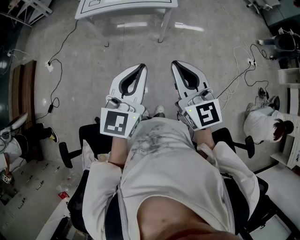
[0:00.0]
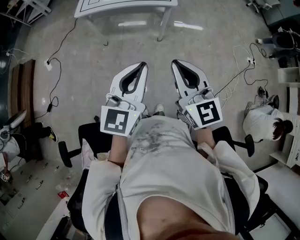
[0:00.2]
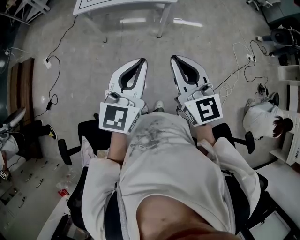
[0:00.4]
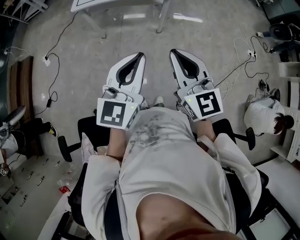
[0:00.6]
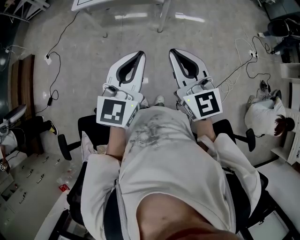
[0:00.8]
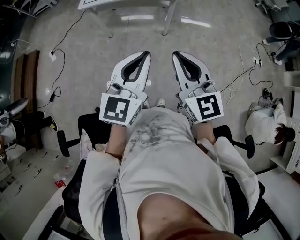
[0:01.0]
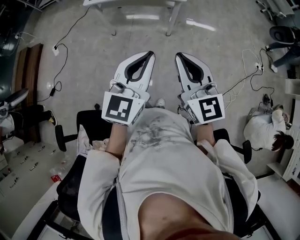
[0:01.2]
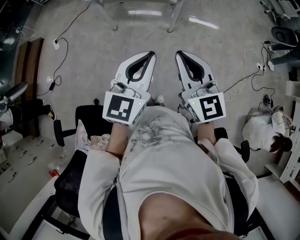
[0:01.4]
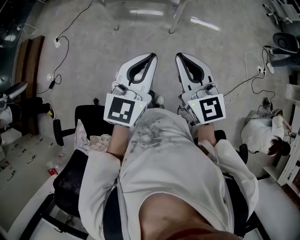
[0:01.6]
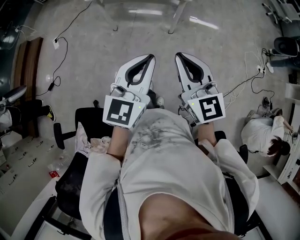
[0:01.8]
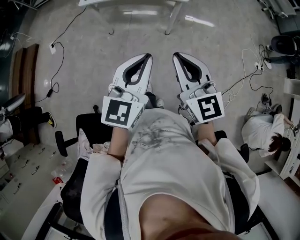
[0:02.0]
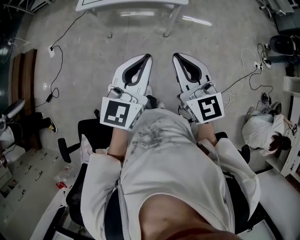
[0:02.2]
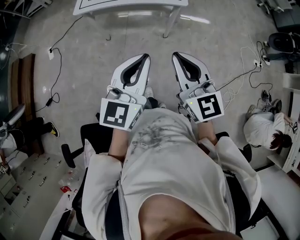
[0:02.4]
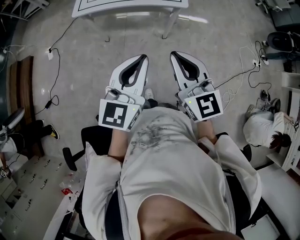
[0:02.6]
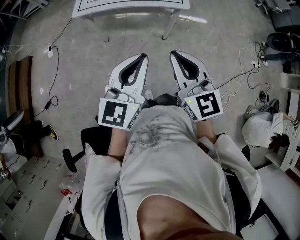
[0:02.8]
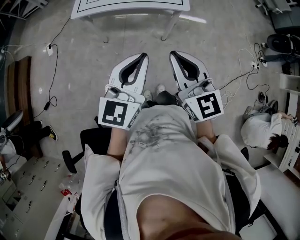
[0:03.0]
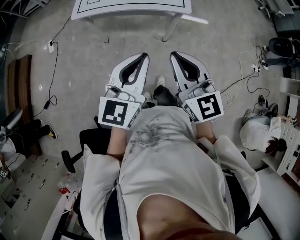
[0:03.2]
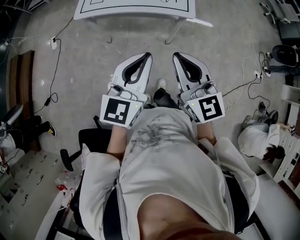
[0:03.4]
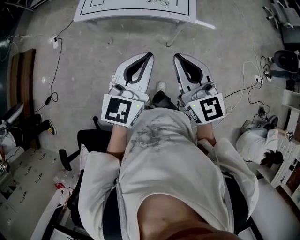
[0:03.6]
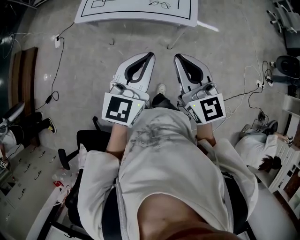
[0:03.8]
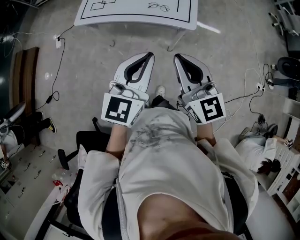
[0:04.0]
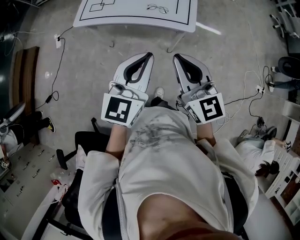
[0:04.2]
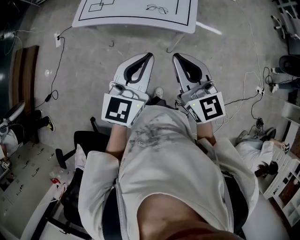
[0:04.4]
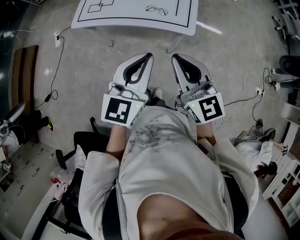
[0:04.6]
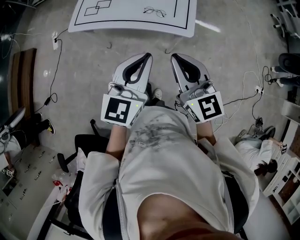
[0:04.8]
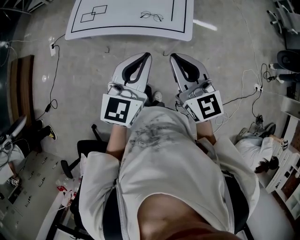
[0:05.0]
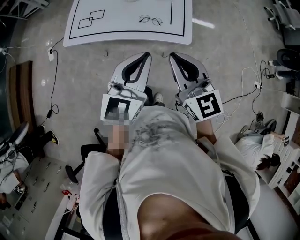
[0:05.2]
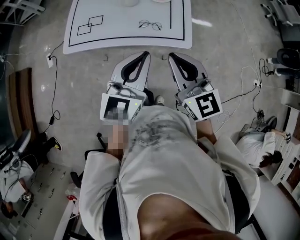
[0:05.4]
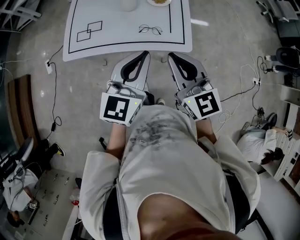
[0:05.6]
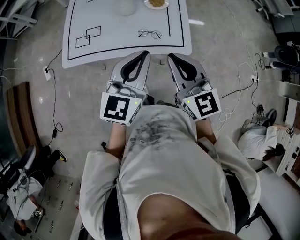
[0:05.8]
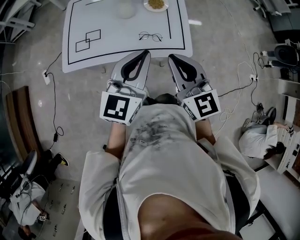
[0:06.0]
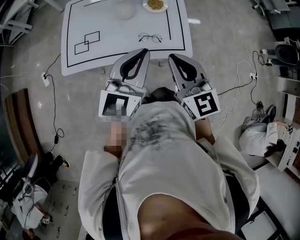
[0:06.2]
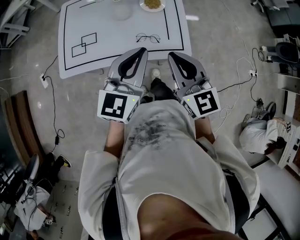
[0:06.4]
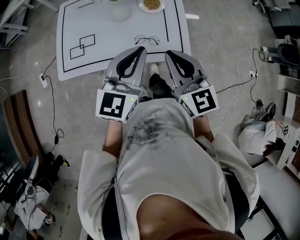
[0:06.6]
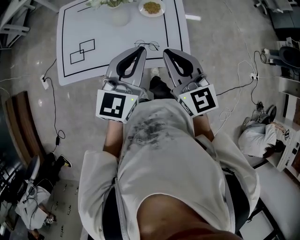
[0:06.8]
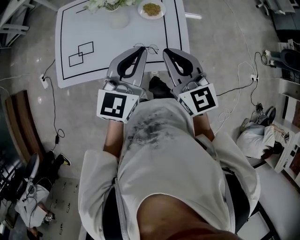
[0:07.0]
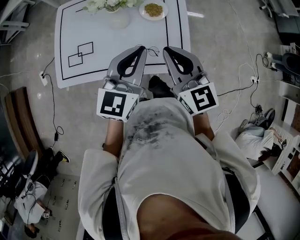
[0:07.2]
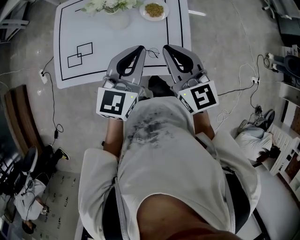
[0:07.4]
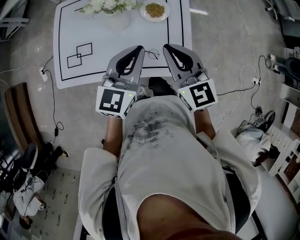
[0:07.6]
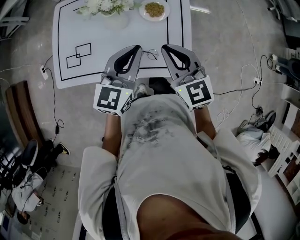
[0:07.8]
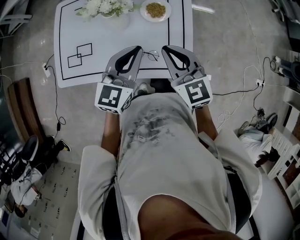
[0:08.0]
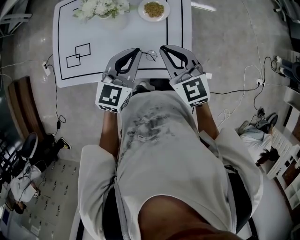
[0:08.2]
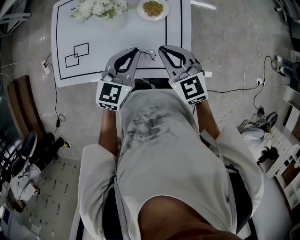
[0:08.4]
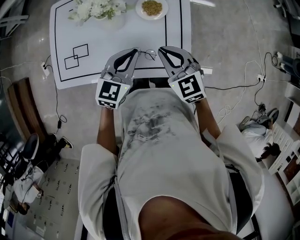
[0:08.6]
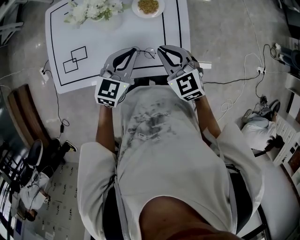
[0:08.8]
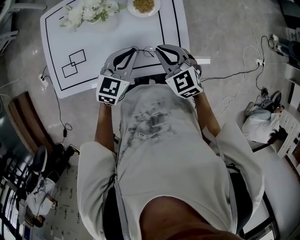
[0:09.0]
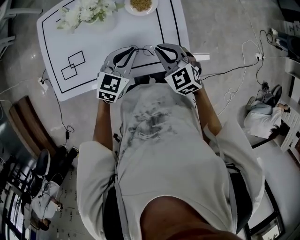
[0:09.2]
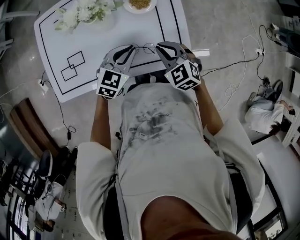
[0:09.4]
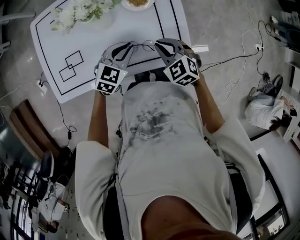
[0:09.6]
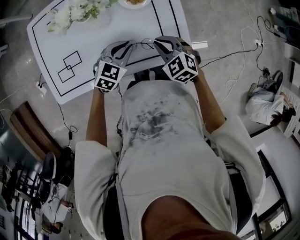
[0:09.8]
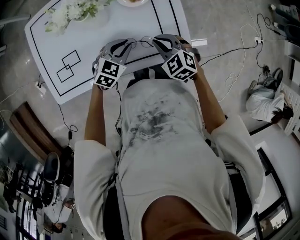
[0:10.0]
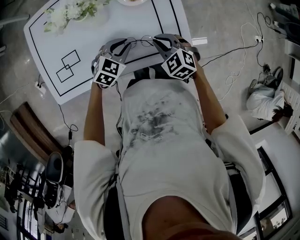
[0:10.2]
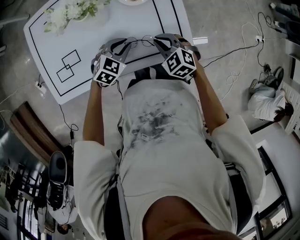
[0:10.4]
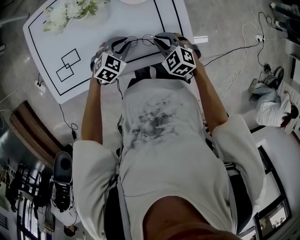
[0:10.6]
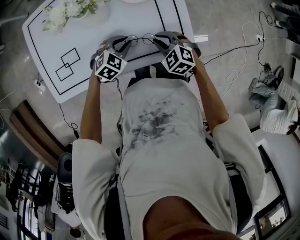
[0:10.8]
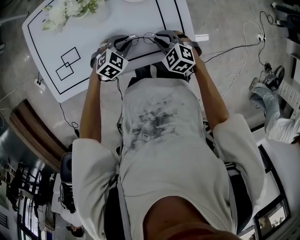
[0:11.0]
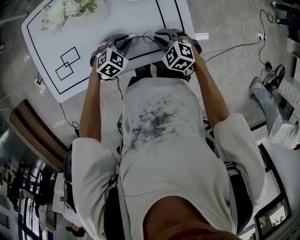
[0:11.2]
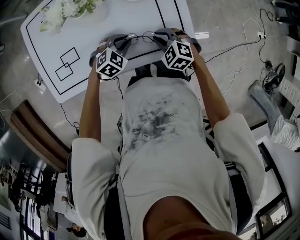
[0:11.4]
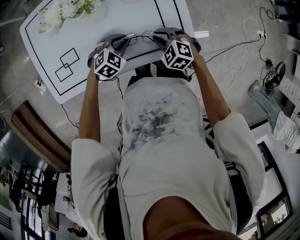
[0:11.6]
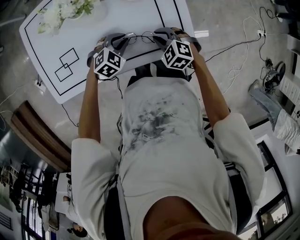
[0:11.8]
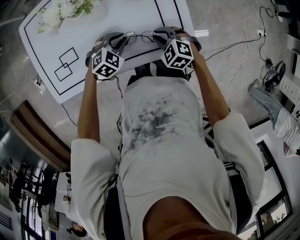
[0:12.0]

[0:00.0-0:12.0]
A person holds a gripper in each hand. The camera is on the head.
0:00.0 to 0:01.6: The left gripper moves about 5 cm.
0:01.6 to 0:03.0: The grippers both shift forward by some 20 cm.
0:03.0 to 0:04.4: The grippers both shift forward and to the right by roughly 20 cm.
0:04.4 to 0:06.0: Both grippers travel together forward, about 20 cm.
0:06.0 to 0:07.6: Both grippers move forward, about 20 cm.
0:07.6 to 0:09.0: Both grippers move downward, approximately 15 cm. The right gripper rotates about 20 degrees; the left gripper changes its angle by approximately 20 degrees.
0:09.0 to 0:10.4: The grippers both shift downward by about 15 cm. The left gripper rotates some 30 degrees.
0:10.4 to 0:12.0: The grippers move only a little.

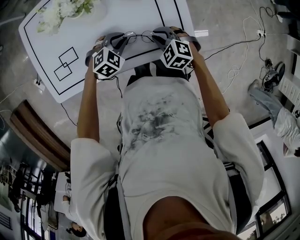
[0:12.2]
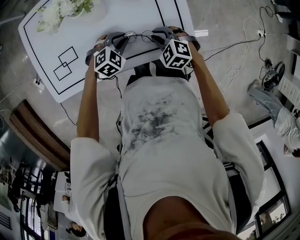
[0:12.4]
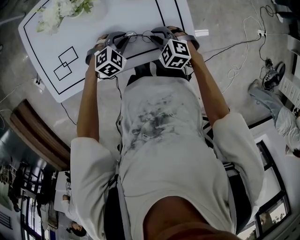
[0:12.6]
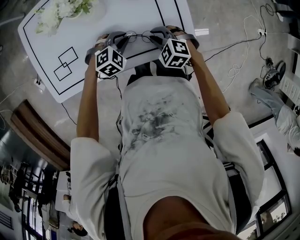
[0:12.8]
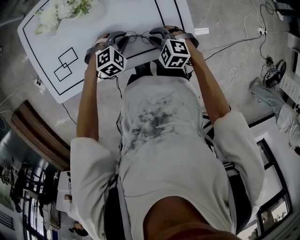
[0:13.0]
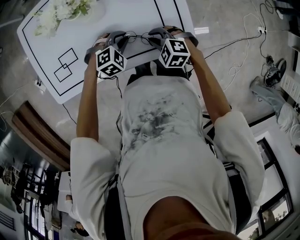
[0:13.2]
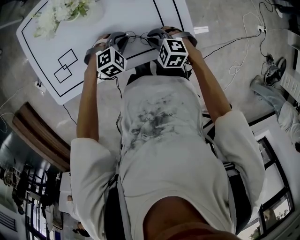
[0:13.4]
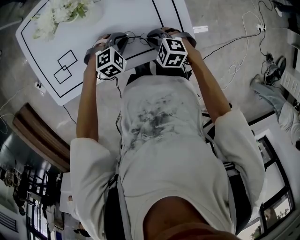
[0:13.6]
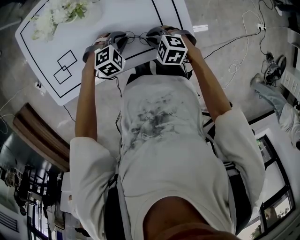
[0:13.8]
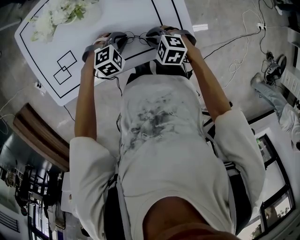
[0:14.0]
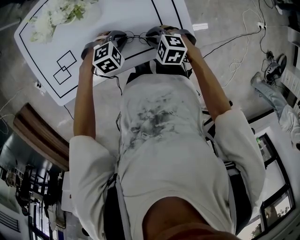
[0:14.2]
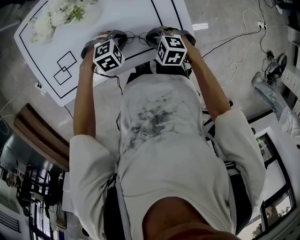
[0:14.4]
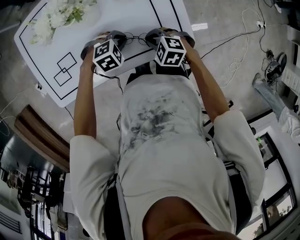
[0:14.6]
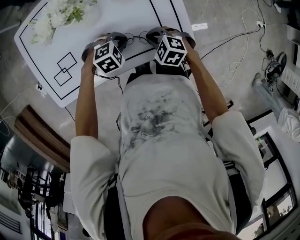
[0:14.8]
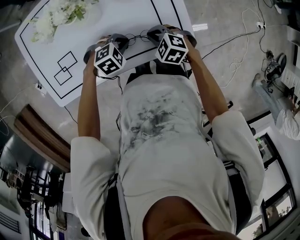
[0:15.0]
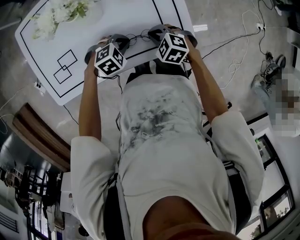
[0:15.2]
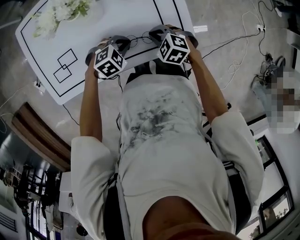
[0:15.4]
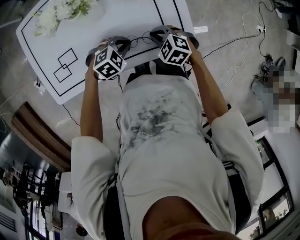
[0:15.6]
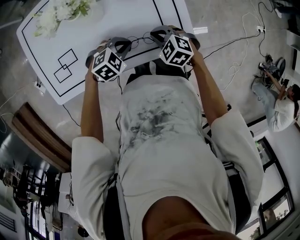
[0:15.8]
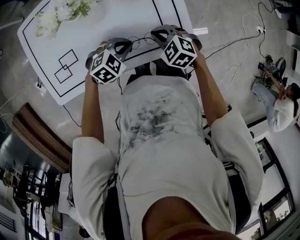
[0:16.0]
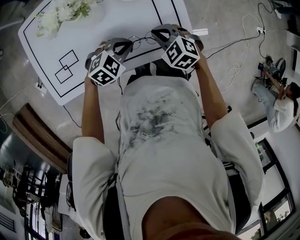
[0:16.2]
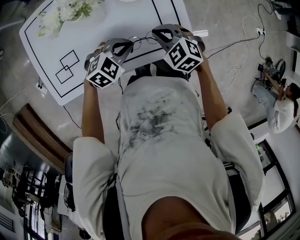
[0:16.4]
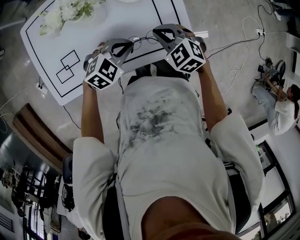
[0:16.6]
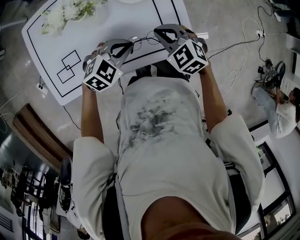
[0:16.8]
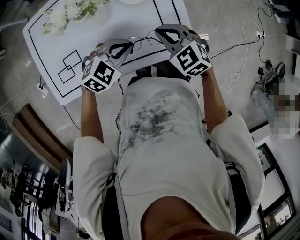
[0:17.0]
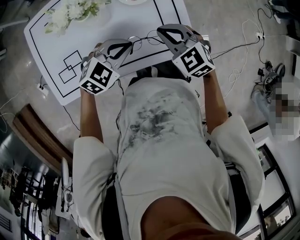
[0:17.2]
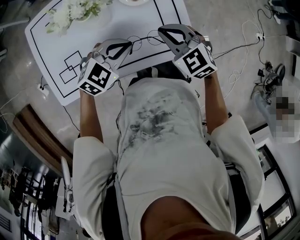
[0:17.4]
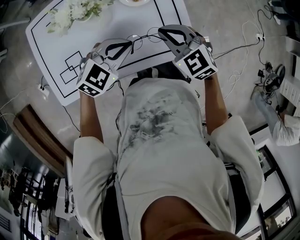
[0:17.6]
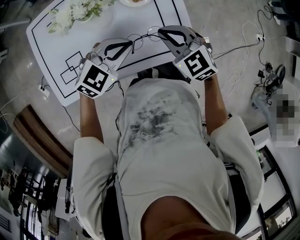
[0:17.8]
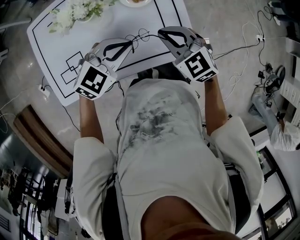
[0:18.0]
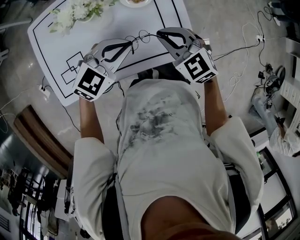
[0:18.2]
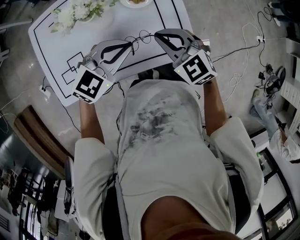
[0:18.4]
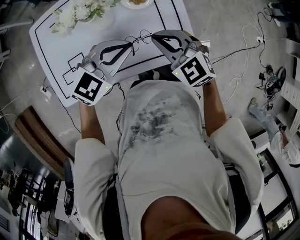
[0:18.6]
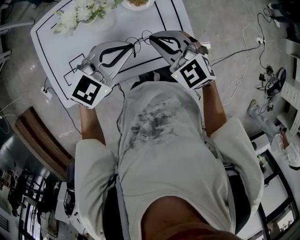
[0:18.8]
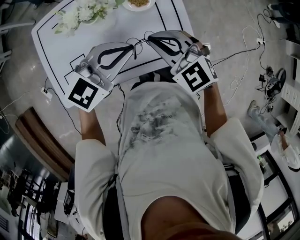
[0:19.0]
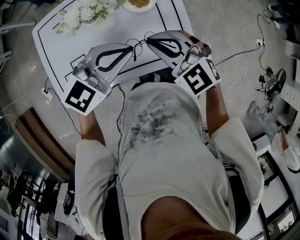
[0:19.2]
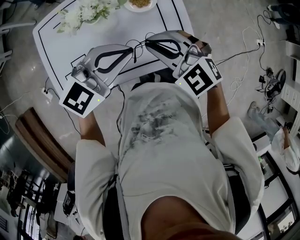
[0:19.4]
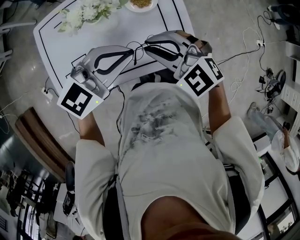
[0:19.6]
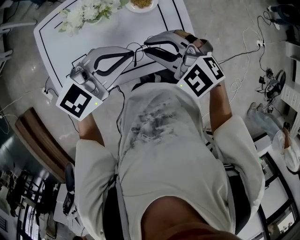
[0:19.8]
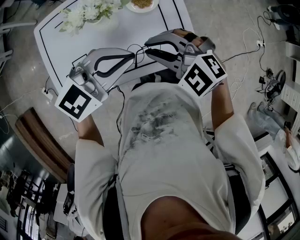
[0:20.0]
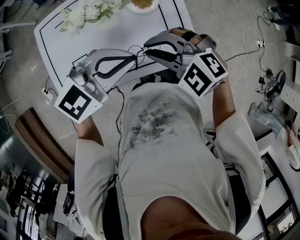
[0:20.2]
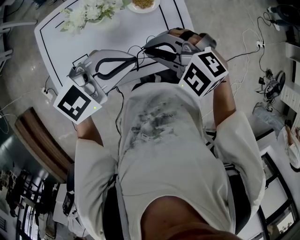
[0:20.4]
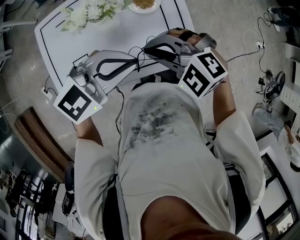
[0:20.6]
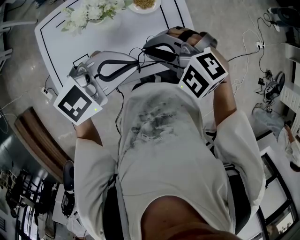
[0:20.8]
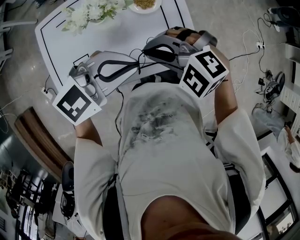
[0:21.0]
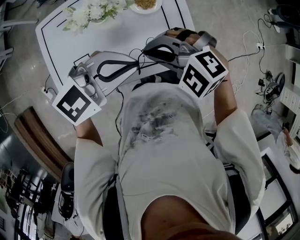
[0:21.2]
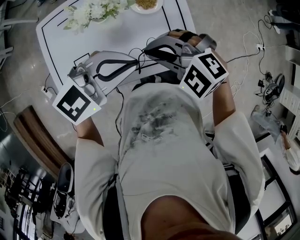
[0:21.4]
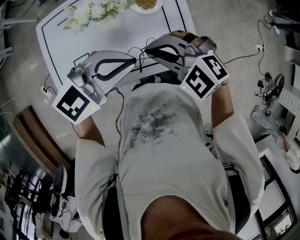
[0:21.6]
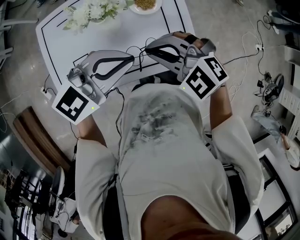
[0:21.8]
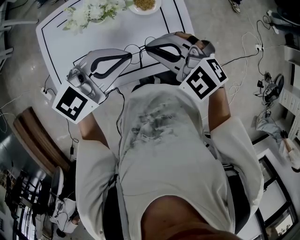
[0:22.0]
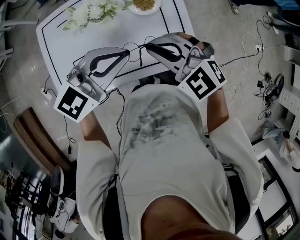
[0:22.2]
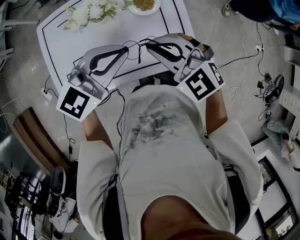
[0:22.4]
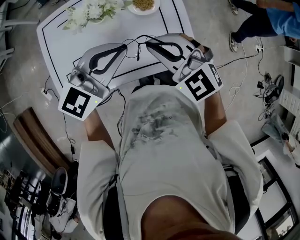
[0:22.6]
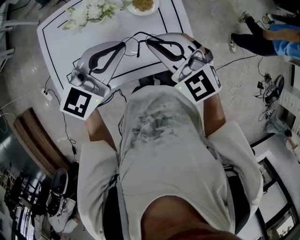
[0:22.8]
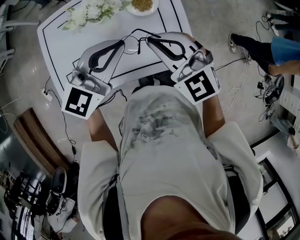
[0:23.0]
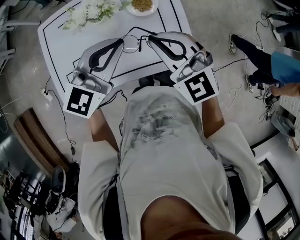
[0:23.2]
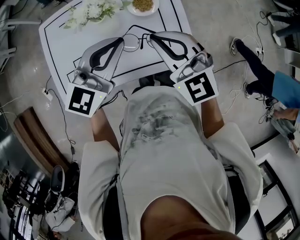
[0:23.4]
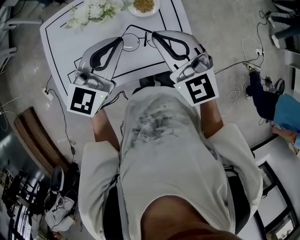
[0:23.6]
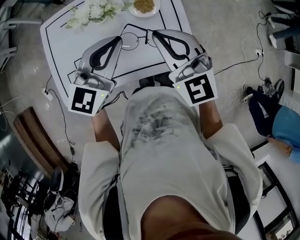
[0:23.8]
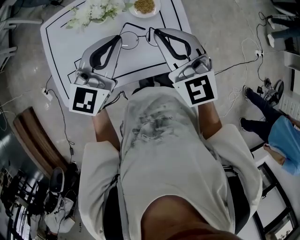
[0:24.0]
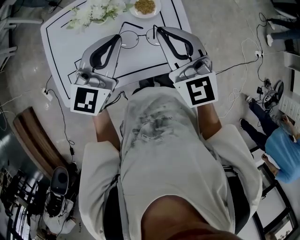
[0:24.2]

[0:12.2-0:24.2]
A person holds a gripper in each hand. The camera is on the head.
0:12.2 to 0:13.8: There are only small adjustments of the grippers.
0:13.8 to 0:15.2: There are only small adjustments of the grippers.
0:15.2 to 0:16.6: Both grippers move upward, roughly 10 cm.
0:16.6 to 0:18.2: The two grippers go some 10 cm upward.
0:18.2 to 0:19.8: The two grippers go approximately 10 cm upward. The right gripper rotates some 20 degrees.
0:19.8 to 0:21.2: The grippers make only small movements.
0:21.2 to 0:22.6: The left gripper turns by about 20 degrees. Meanwhile the right gripper changes its angle by approximately 30 degrees.
0:22.6 to 0:24.2: The left gripper swivels approximately 20 degrees, while the right gripper goes some 5 cm upward, and swivels about 30 degrees.
